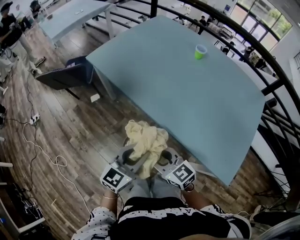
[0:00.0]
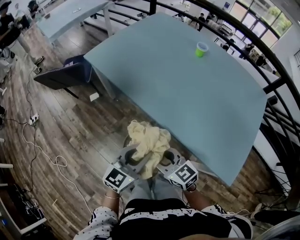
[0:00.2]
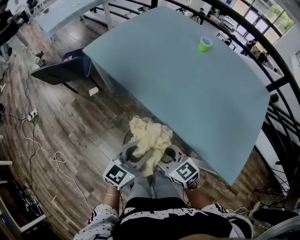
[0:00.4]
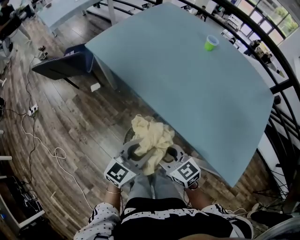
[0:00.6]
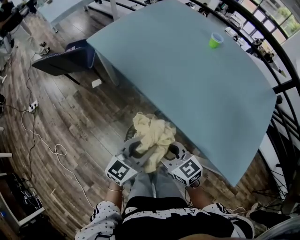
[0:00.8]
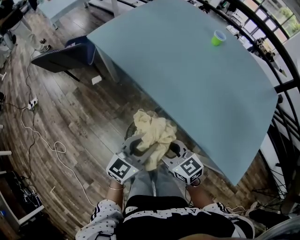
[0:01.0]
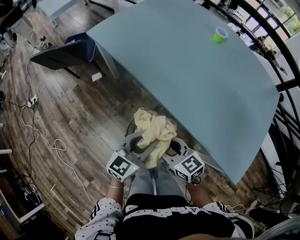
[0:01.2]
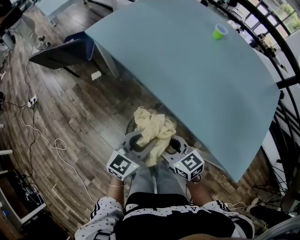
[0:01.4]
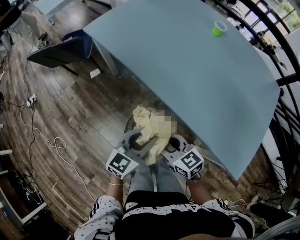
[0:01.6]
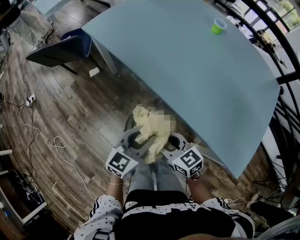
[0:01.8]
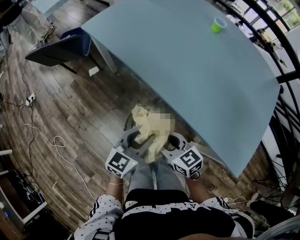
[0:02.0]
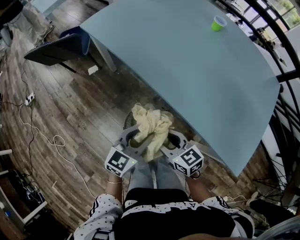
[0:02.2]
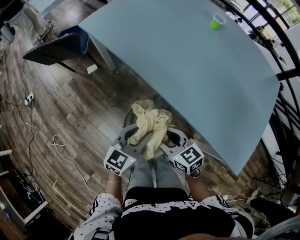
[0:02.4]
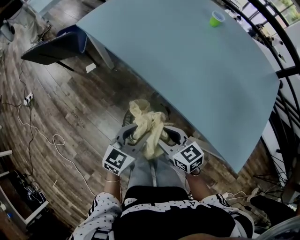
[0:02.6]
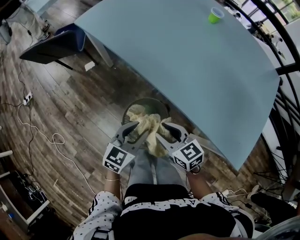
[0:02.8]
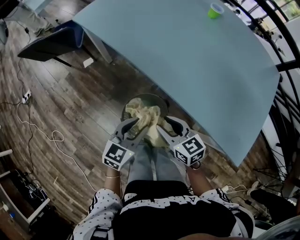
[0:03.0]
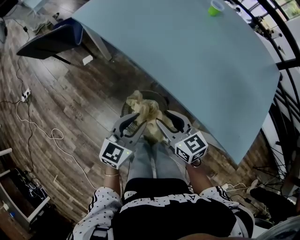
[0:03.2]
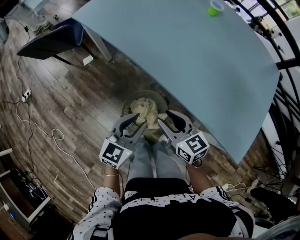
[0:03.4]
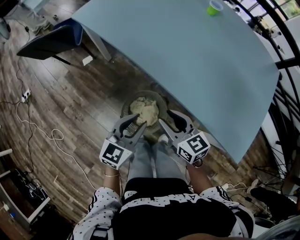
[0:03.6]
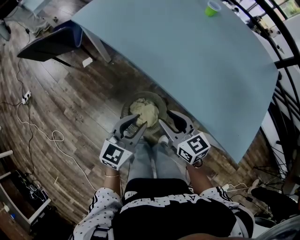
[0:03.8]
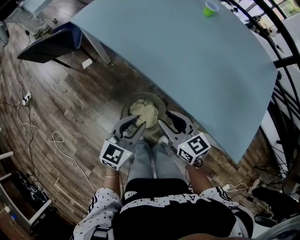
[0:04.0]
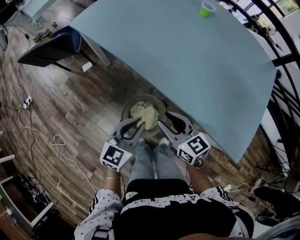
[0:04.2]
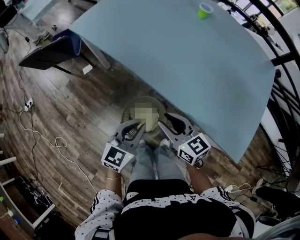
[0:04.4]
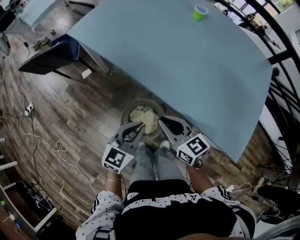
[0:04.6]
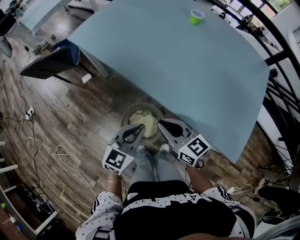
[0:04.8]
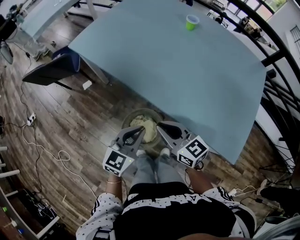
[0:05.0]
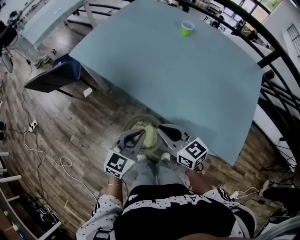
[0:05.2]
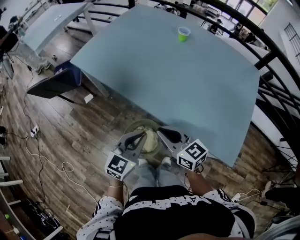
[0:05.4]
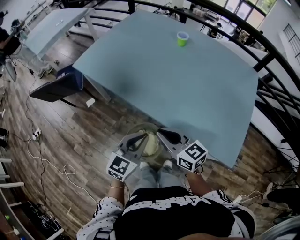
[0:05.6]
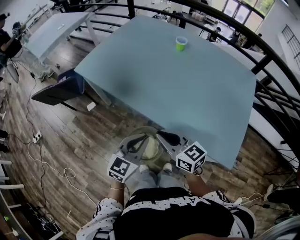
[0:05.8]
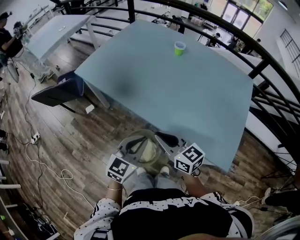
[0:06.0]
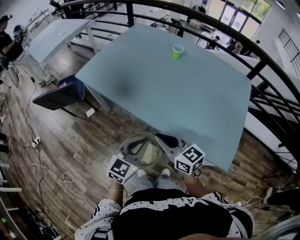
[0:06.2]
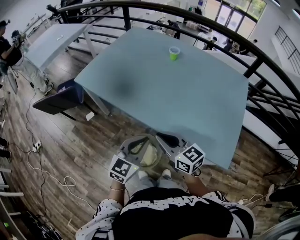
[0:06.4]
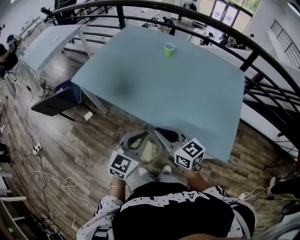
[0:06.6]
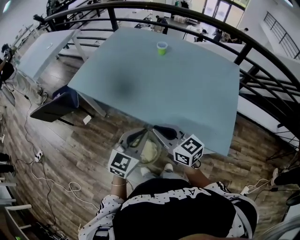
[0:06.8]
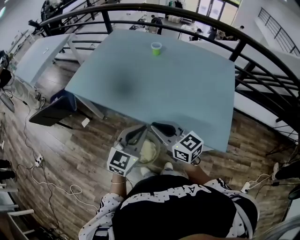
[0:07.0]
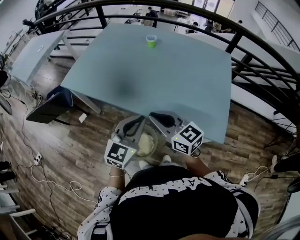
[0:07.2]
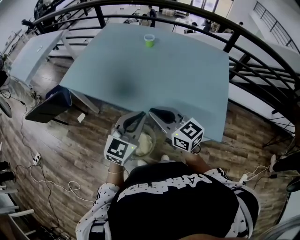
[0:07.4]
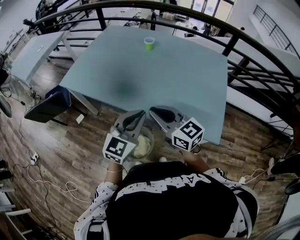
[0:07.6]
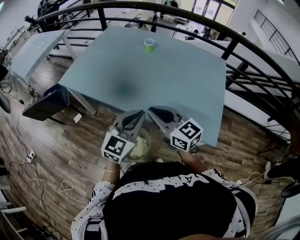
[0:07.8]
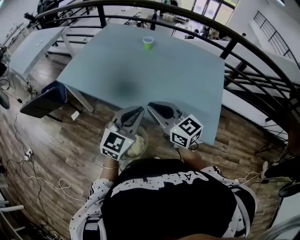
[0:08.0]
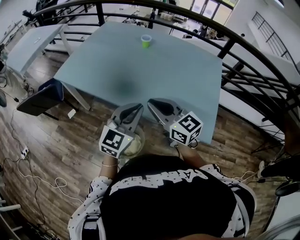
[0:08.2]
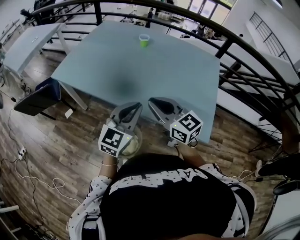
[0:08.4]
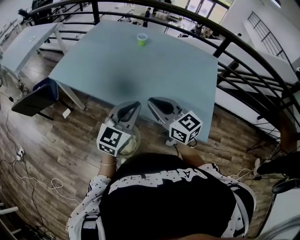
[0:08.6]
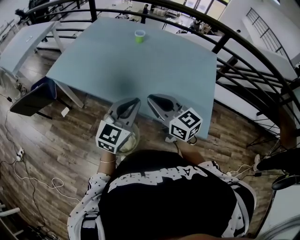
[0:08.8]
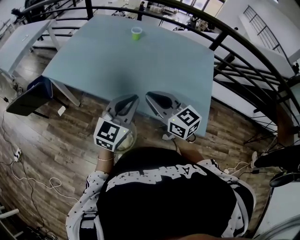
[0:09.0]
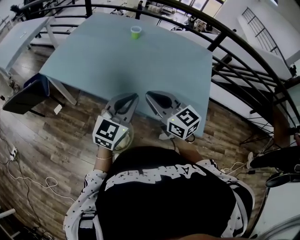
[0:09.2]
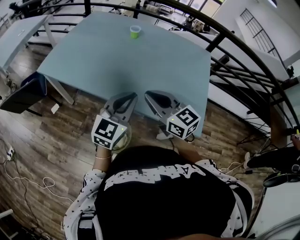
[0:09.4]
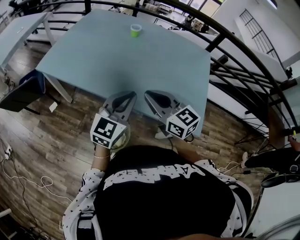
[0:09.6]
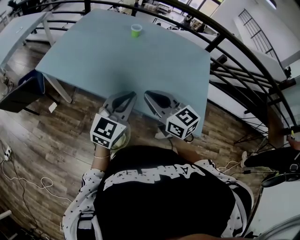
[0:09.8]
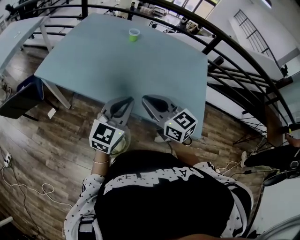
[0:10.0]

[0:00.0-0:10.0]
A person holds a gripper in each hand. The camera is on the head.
0:00.0 to 0:01.4: The two grippers go roughly 10 cm downward.
0:01.4 to 0:02.8: The grippers move only a little.
0:02.8 to 0:04.2: The right gripper ends up approximately 5 cm from where it was.
0:04.2 to 0:05.8: Both grippers move upward, about 10 cm. The right gripper closes.
0:05.8 to 0:07.2: The two grippers go approximately 10 cm upward.
0:07.2 to 0:08.6: The right gripper shifts by roughly 5 cm.
0:08.6 to 0:10.0: The grippers make only small movements.

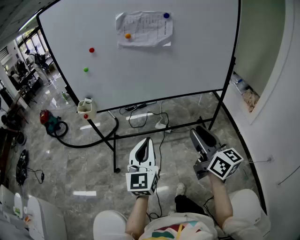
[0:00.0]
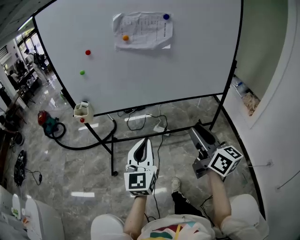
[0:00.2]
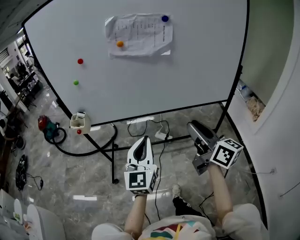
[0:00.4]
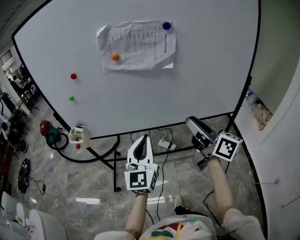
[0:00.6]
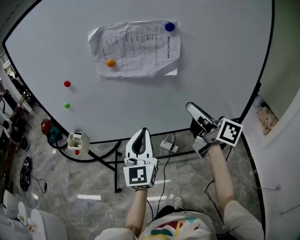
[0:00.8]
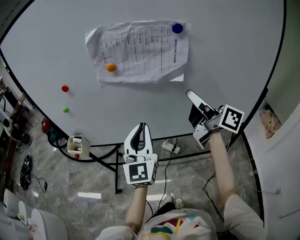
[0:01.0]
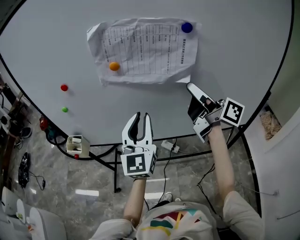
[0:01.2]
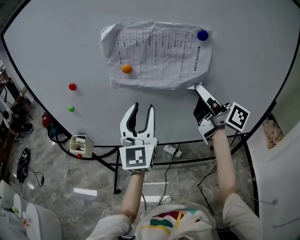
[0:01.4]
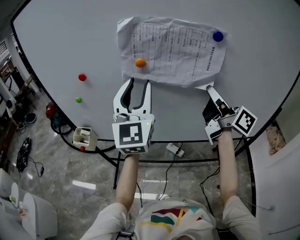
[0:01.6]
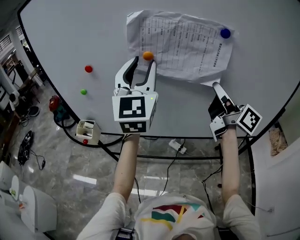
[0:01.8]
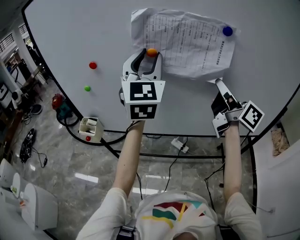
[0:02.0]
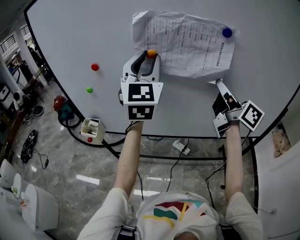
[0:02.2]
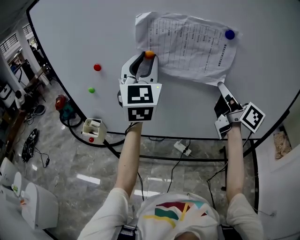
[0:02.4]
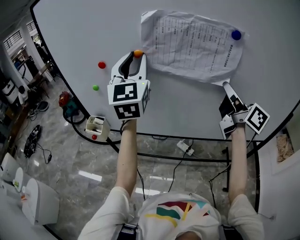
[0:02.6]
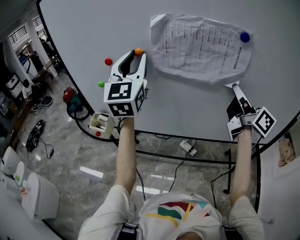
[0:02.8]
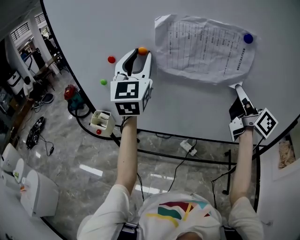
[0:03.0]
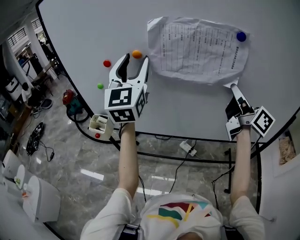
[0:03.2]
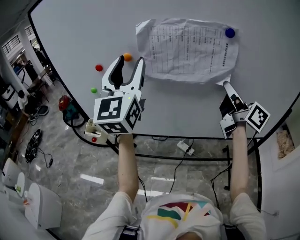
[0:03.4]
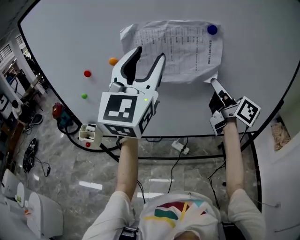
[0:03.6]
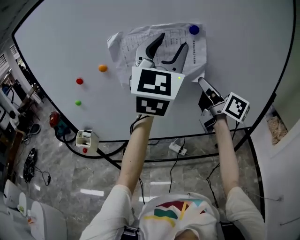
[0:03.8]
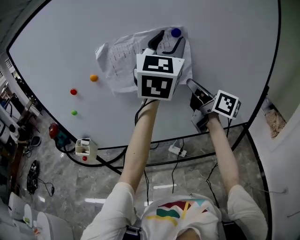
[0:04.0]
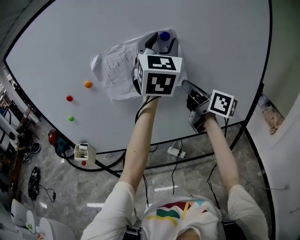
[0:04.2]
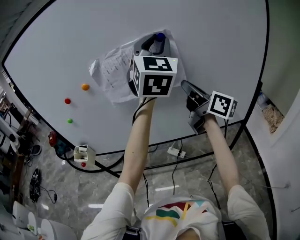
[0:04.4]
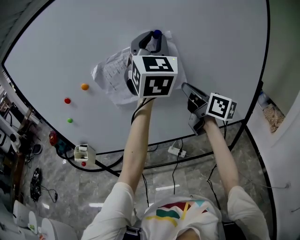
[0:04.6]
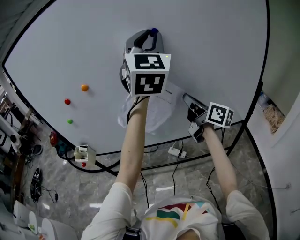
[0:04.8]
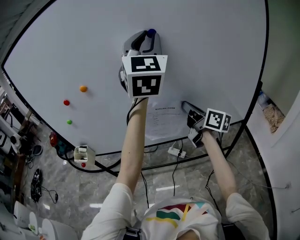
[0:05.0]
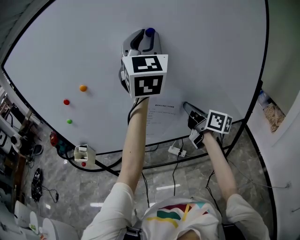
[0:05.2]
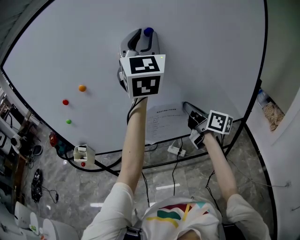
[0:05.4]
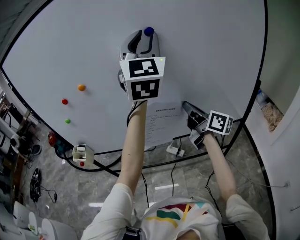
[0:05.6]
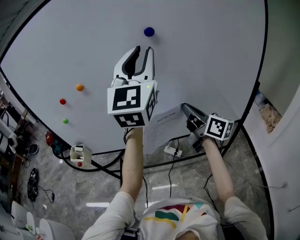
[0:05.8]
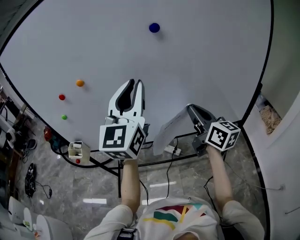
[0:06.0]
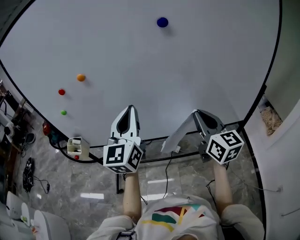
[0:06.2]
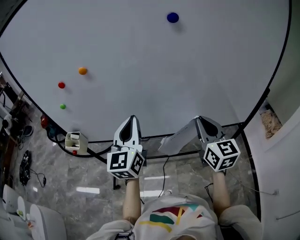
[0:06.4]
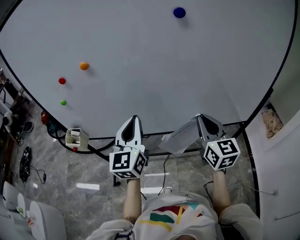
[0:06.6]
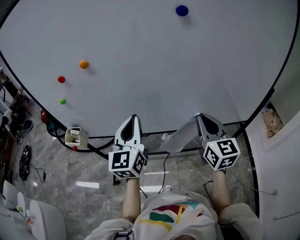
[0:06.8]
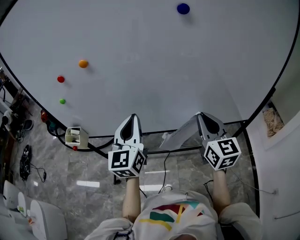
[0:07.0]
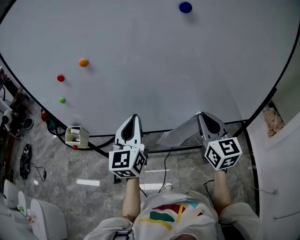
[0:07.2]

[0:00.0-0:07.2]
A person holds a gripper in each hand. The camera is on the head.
0:00.0 to 0:01.4: The two grippers travel together, forward, some 50 cm. The left gripper opens up. Meanwhile the right gripper swivels roughly 40 degrees.
0:01.4 to 0:02.8: The left gripper moves upward, to the left and forward, roughly 20 cm, while the right gripper closes up.
0:02.8 to 0:04.4: The left gripper goes approximately 30 cm to the right, turns by some 20 degrees, and opens and closes again.
0:04.4 to 0:05.8: The left gripper moves some 5 cm; the right gripper travels downward by some 10 cm.
0:05.8 to 0:07.2: The right gripper ends up about 5 cm from where it was, and turns by about 40 degrees. Meanwhile the left gripper moves downward and to the left, roughly 30 cm, swivels roughly 30 degrees, and closes up.

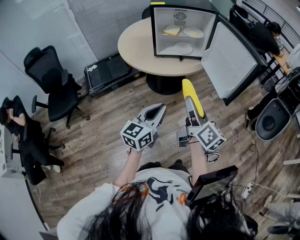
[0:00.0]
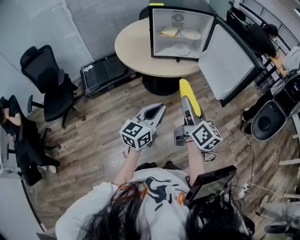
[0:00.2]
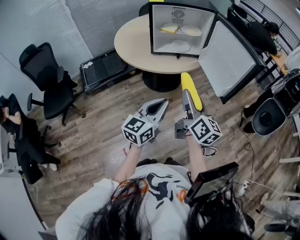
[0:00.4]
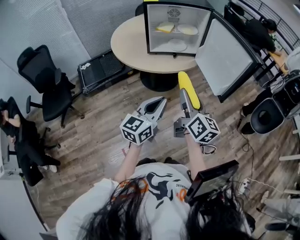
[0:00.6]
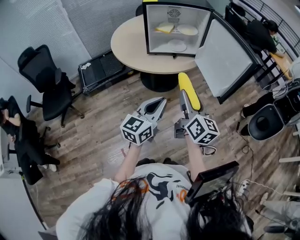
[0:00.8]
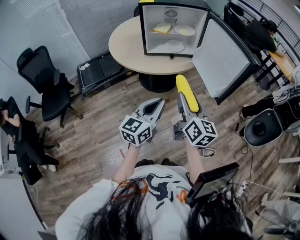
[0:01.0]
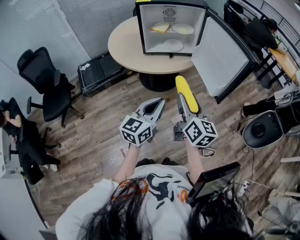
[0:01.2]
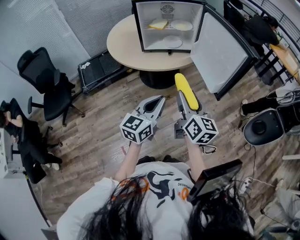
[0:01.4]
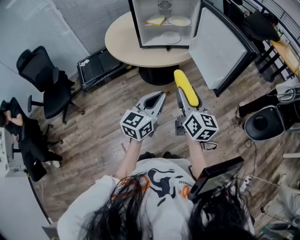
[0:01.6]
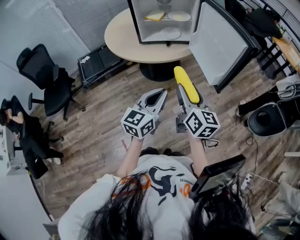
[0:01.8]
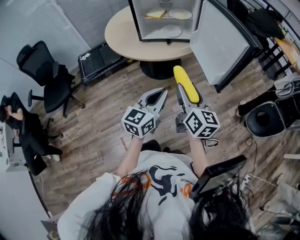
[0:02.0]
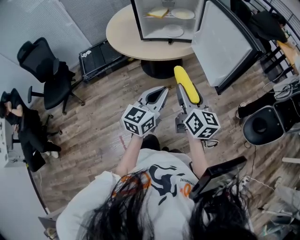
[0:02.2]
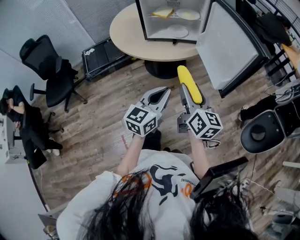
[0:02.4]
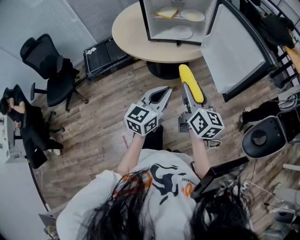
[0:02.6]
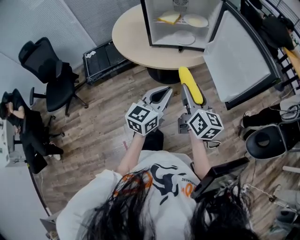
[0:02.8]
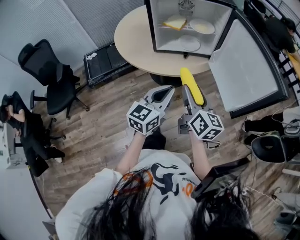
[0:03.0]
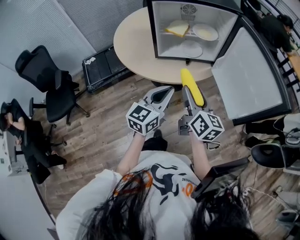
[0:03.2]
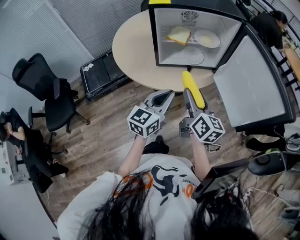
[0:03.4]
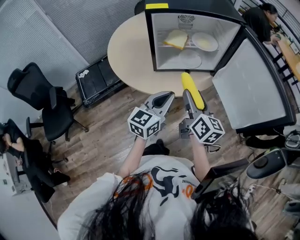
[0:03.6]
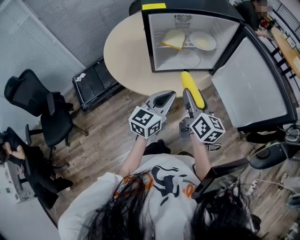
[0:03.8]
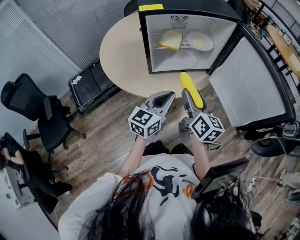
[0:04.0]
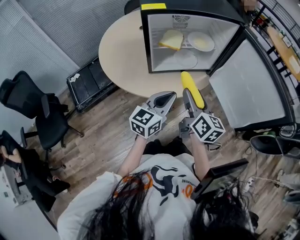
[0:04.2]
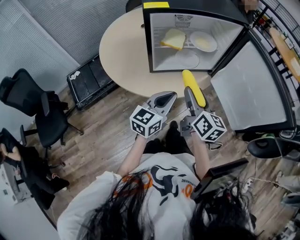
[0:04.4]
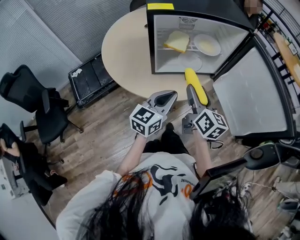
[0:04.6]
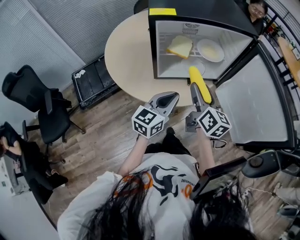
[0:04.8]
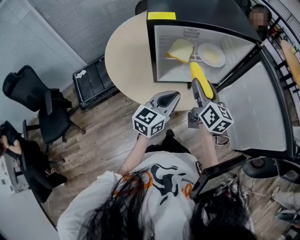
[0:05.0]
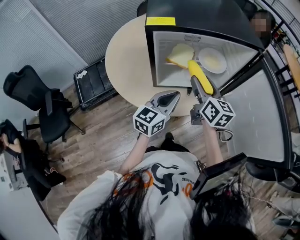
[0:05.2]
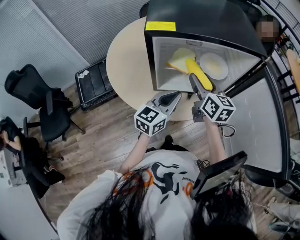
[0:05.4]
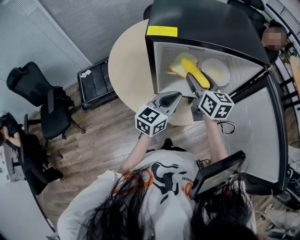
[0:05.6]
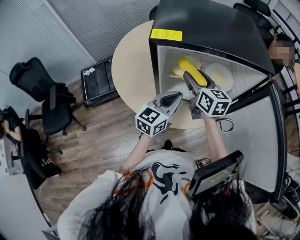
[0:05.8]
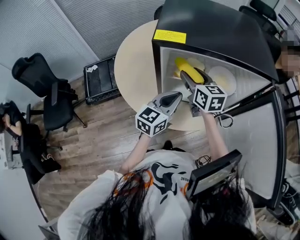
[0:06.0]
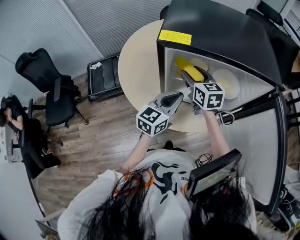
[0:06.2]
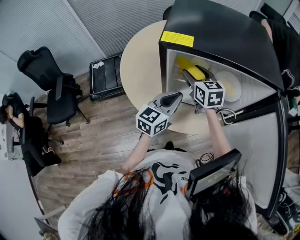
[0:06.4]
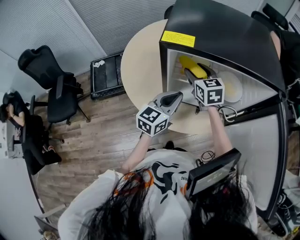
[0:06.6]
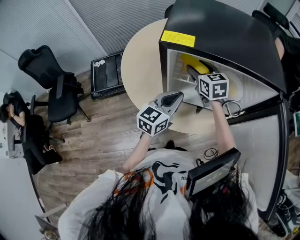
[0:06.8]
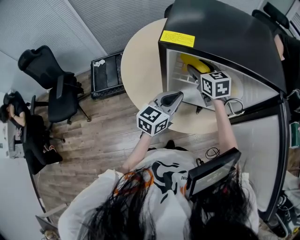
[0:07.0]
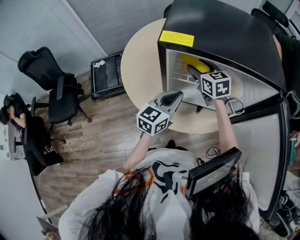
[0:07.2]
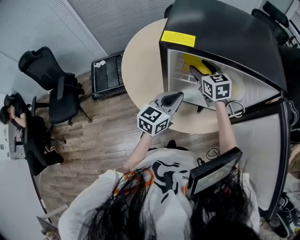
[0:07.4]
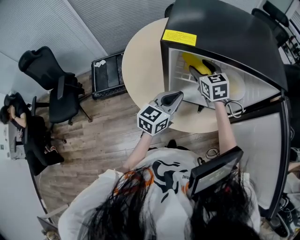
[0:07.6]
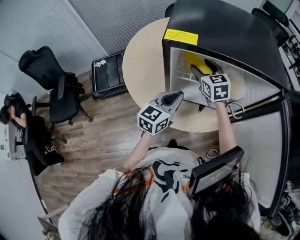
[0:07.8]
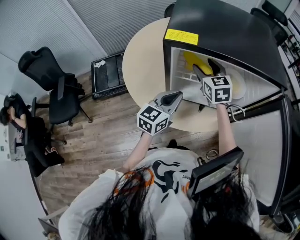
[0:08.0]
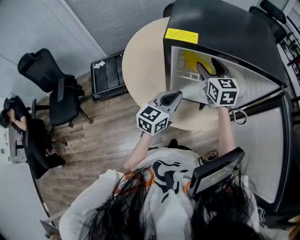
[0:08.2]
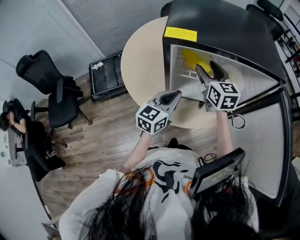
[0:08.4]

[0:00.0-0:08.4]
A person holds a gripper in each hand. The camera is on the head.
0:00.0 to 0:01.4: The left gripper moves to the right, about 5 cm, while the right gripper moves some 5 cm.
0:01.4 to 0:02.8: Both grippers travel together forward, roughly 10 cm.
0:02.8 to 0:04.2: The grippers both shift forward and to the left by about 20 cm.
0:04.2 to 0:05.6: The grippers both shift forward by roughly 20 cm. The right gripper changes its angle by about 30 degrees.
0:05.6 to 0:07.0: The right gripper heads forward and to the left, covering about 10 cm, and turns by some 30 degrees.
0:07.0 to 0:08.4: The right gripper ends up some 5 cm from where it was.
